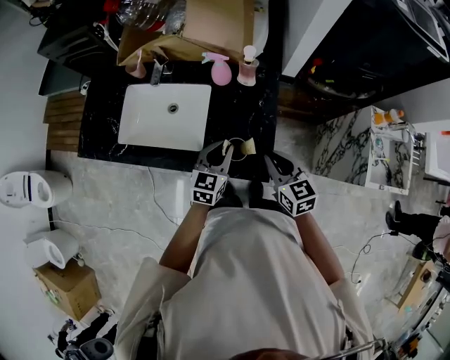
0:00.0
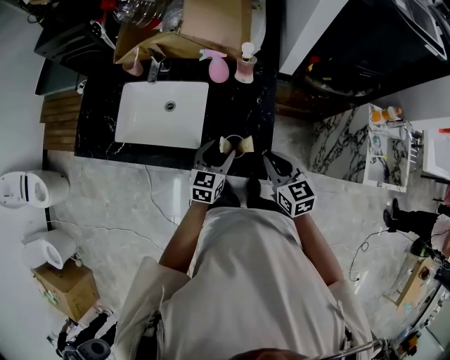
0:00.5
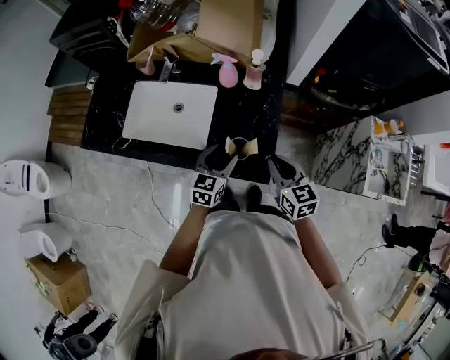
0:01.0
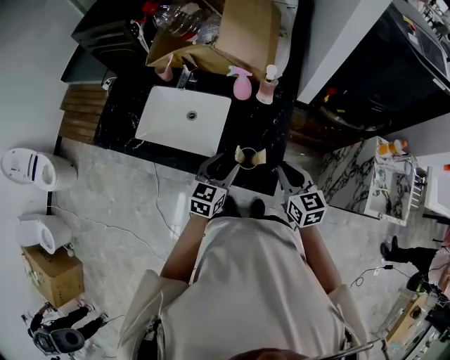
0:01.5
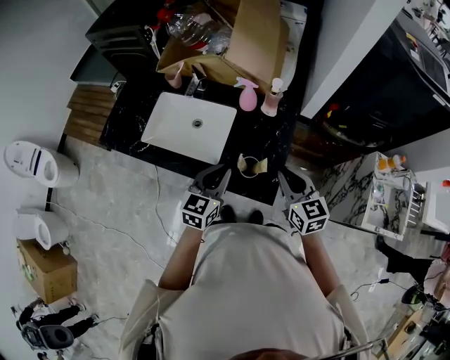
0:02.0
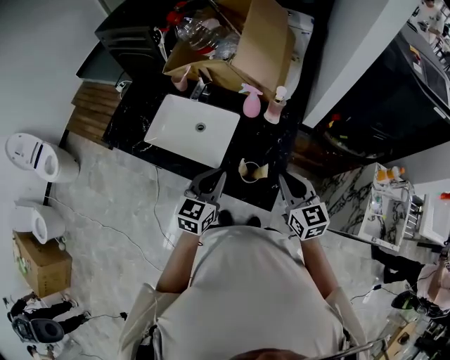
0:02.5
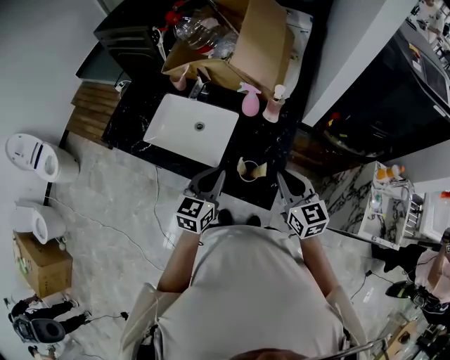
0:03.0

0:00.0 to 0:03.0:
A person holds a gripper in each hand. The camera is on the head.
0:00.0 to 0:01.5: The left gripper changes place by approximately 5 cm, and opens its fingers.
0:01.5 to 0:03.0: The grippers both shift upward by roughly 5 cm. The left gripper closes.

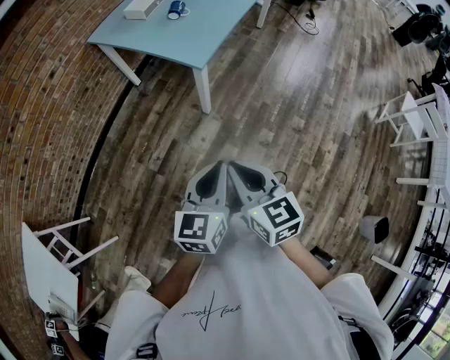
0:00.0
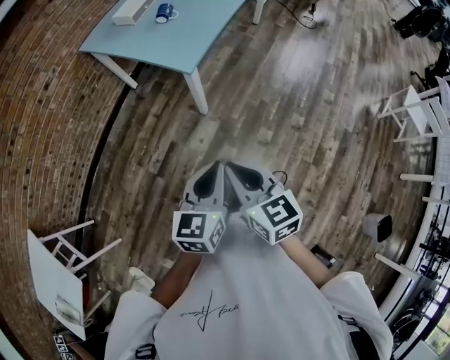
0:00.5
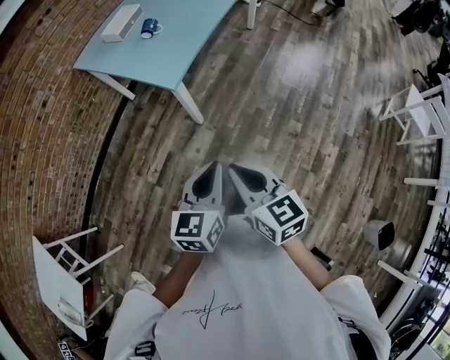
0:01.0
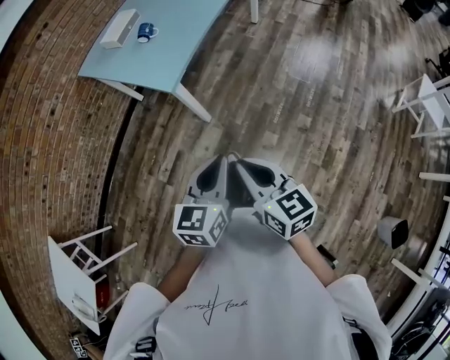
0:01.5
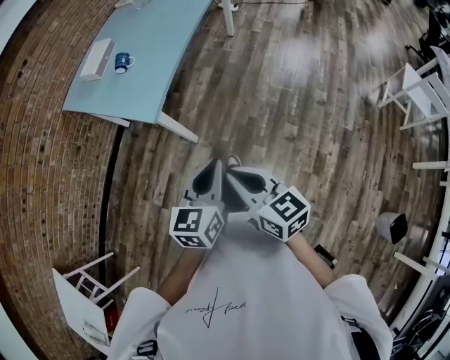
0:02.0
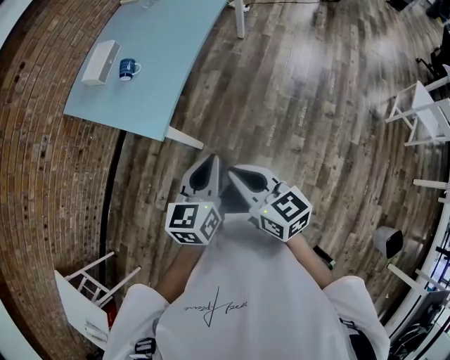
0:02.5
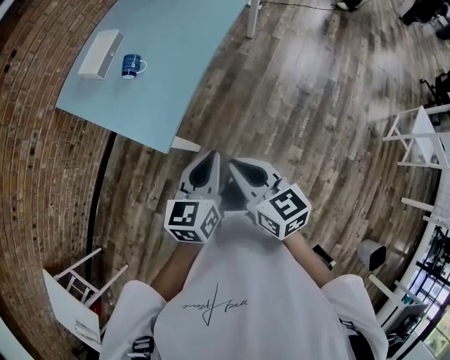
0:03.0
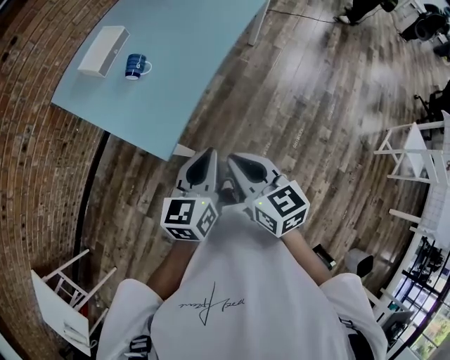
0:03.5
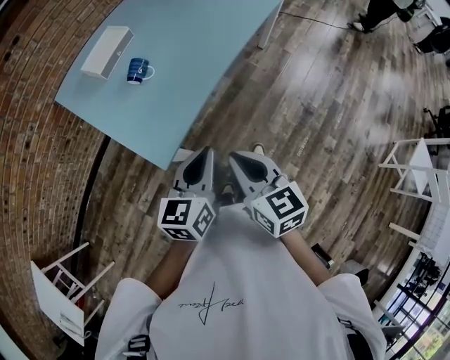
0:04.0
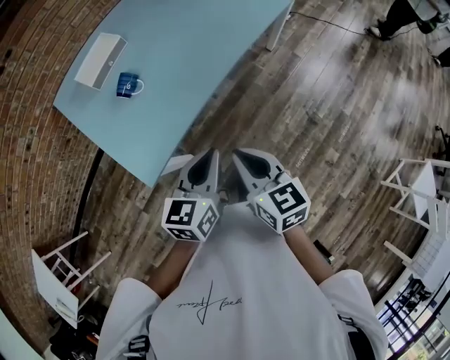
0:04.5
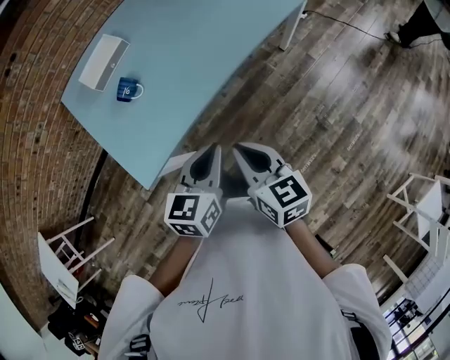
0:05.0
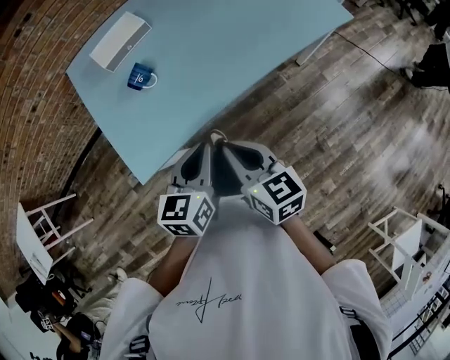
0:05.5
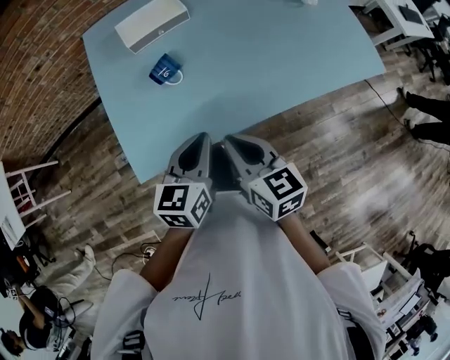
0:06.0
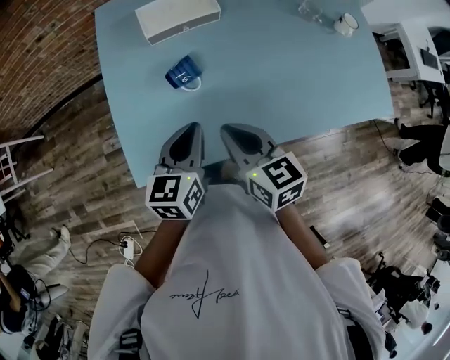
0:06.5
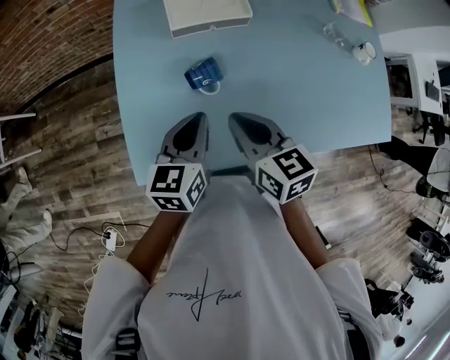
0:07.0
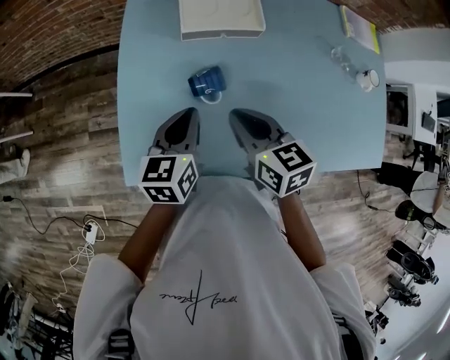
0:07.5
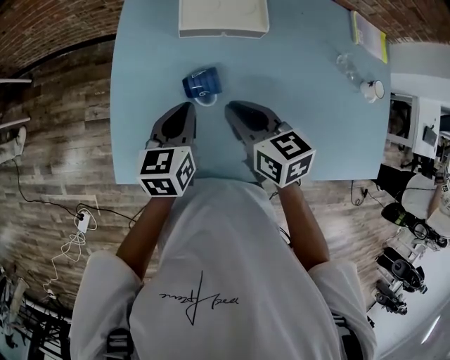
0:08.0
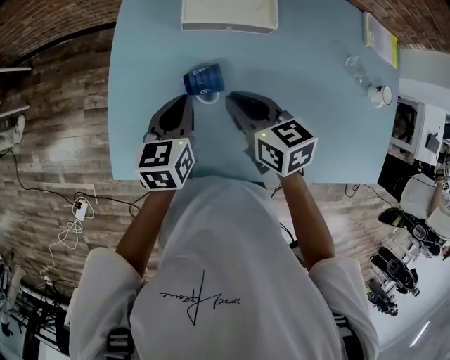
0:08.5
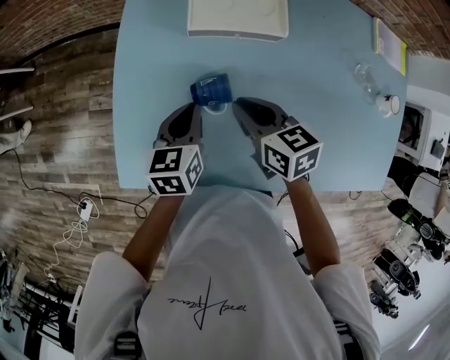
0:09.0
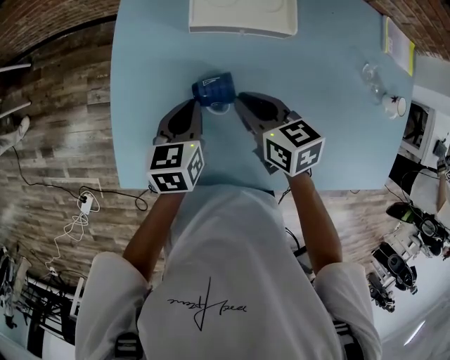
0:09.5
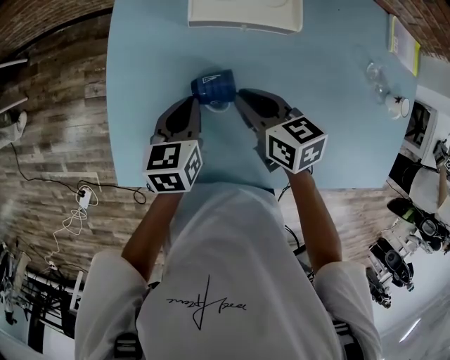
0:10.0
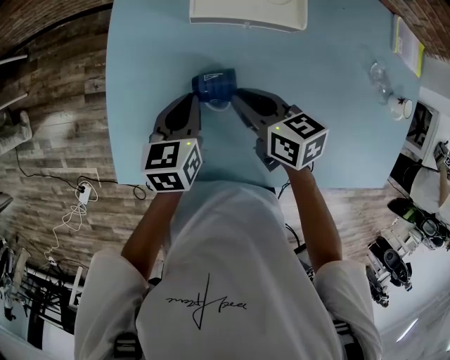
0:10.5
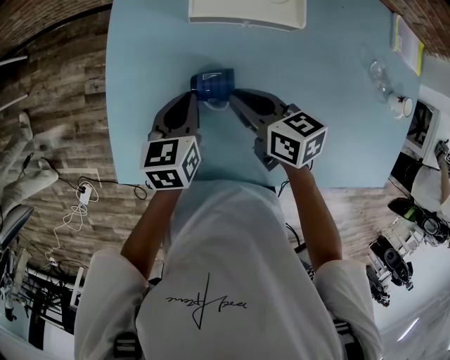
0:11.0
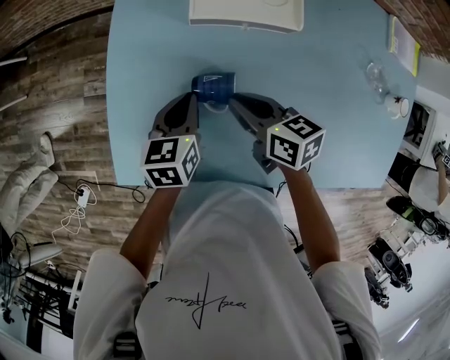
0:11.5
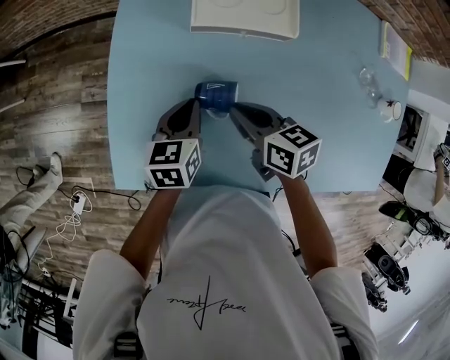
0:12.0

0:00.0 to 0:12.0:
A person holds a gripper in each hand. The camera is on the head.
0:00.0 to 0:02.0: The two grippers go roughly 25 cm to the right and forward.
0:02.0 to 0:04.0: The two grippers go approximately 30 cm forward.
0:04.0 to 0:06.0: The left gripper shifts by roughly 20 cm, and swivels some 30 degrees. Meanwhile the right gripper ends up about 25 cm from where it was, and changes its angle by some 30 degrees.
0:06.0 to 0:08.0: The left gripper moves roughly 20 cm, and changes its angle by approximately 30 degrees; the right gripper moves some 25 cm, and turns by approximately 30 degrees.
0:08.0 to 0:10.0: Both grippers move downward, approximately 10 cm.
0:10.0 to 0:12.0: The grippers make only small movements.

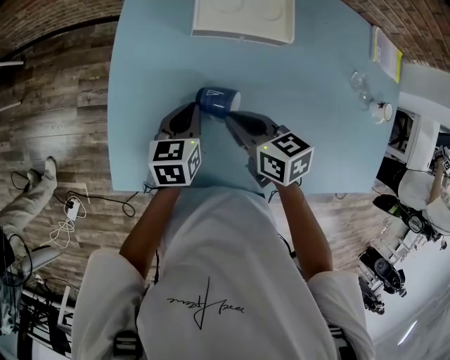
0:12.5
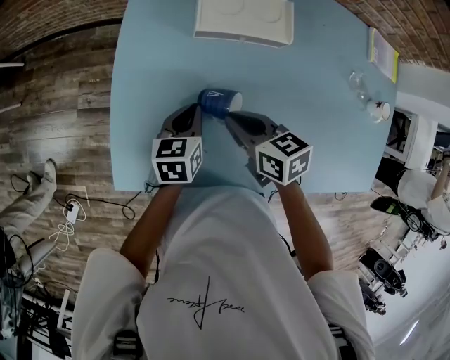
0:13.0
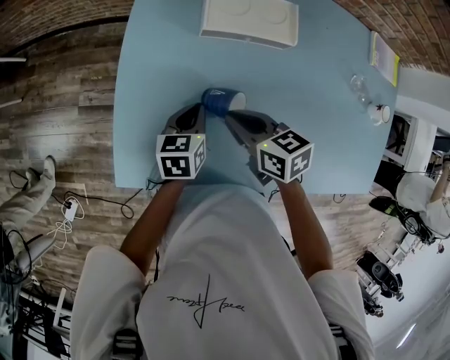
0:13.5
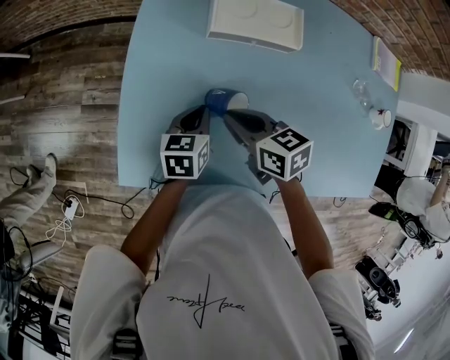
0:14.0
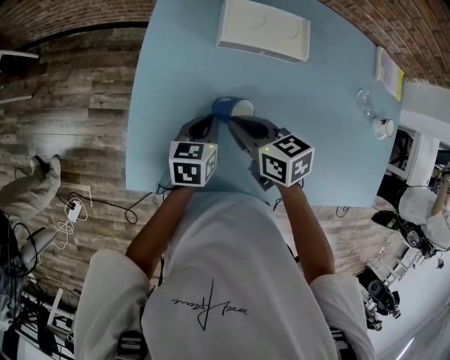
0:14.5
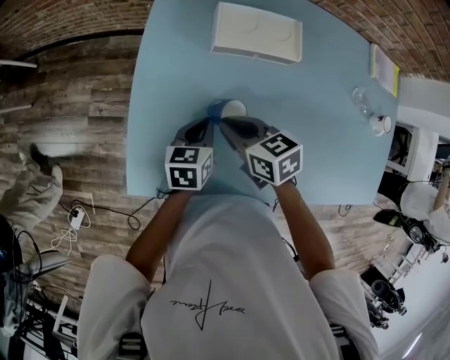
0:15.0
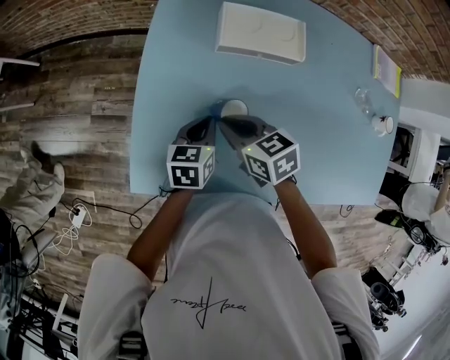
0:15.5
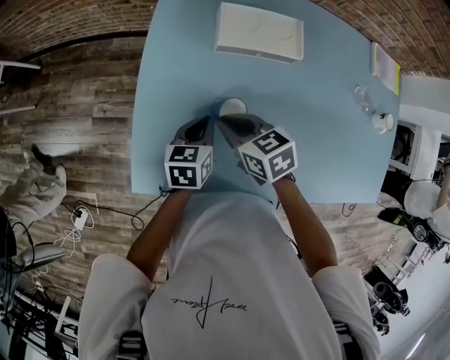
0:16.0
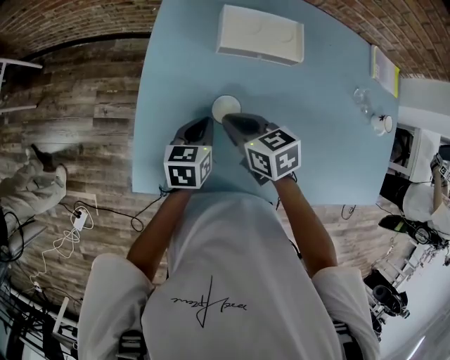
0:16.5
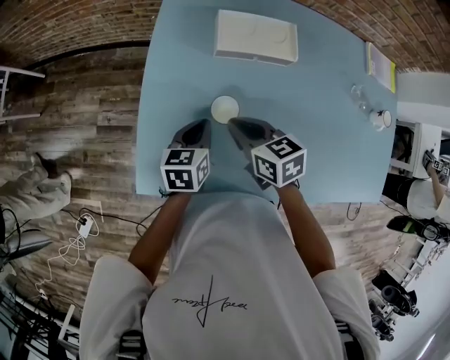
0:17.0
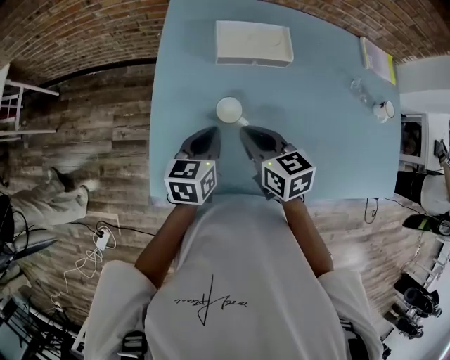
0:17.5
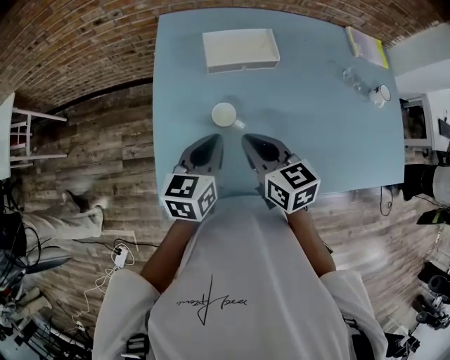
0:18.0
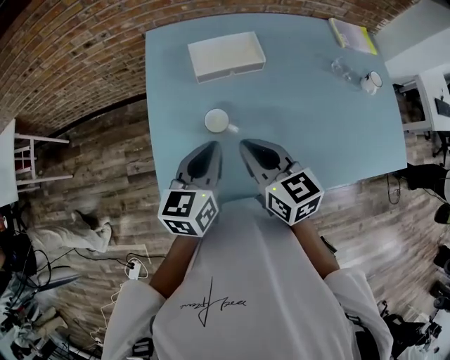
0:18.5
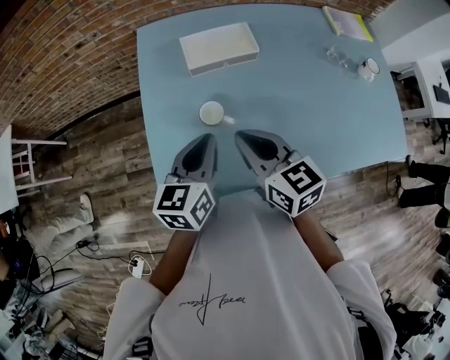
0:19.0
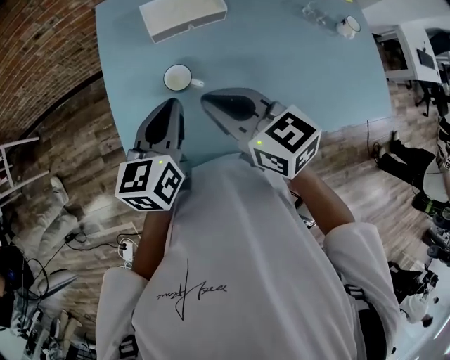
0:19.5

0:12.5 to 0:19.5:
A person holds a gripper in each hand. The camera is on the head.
0:12.5 to 0:14.5: The grippers make only small movements.
0:14.5 to 0:16.0: The grippers stay close to where they were, moving slightly.
0:16.0 to 0:17.5: Both grippers move upward, approximately 5 cm. The right gripper turns by some 20 degrees.
0:17.5 to 0:19.5: Both grippers move upward, roughly 10 cm.

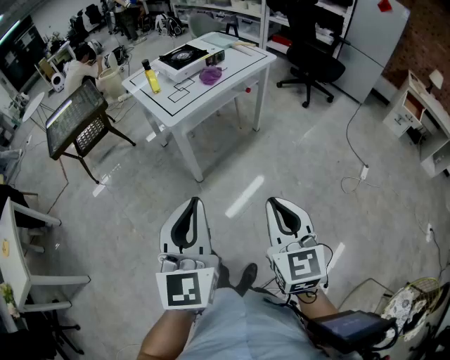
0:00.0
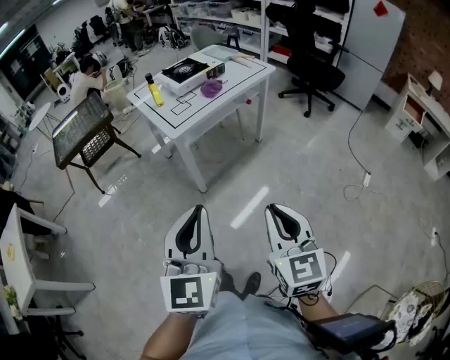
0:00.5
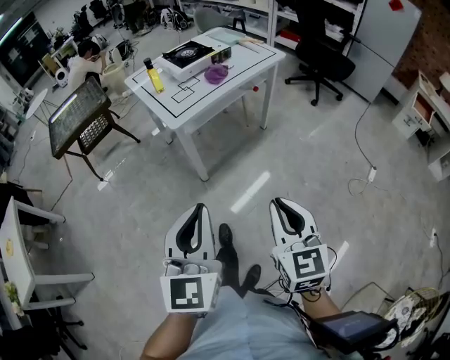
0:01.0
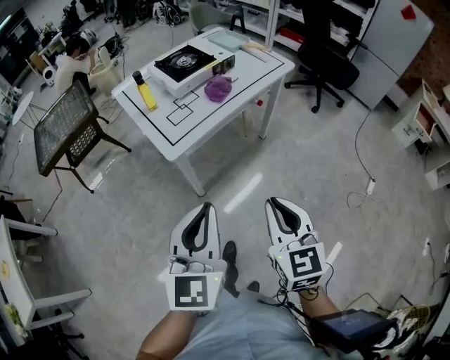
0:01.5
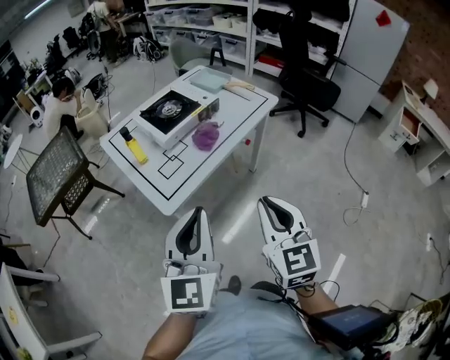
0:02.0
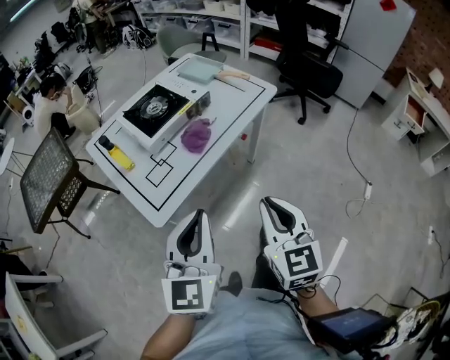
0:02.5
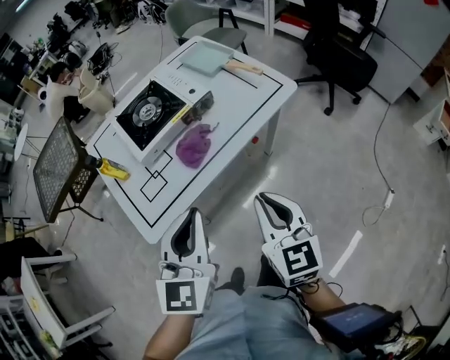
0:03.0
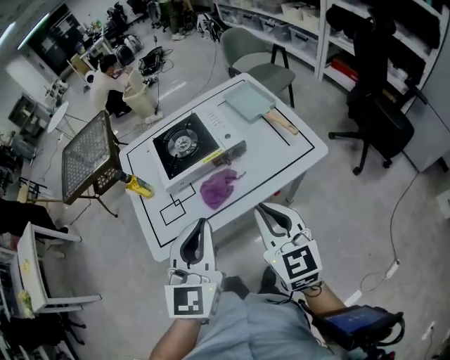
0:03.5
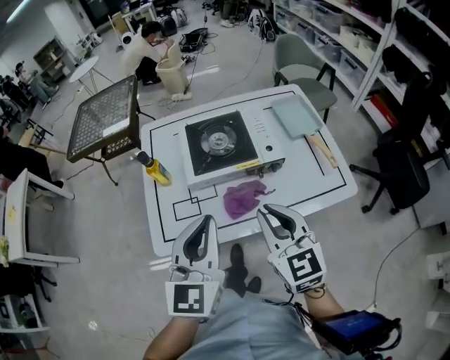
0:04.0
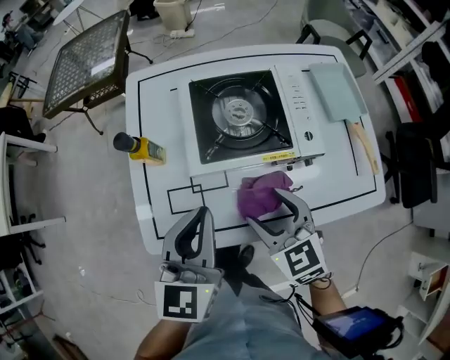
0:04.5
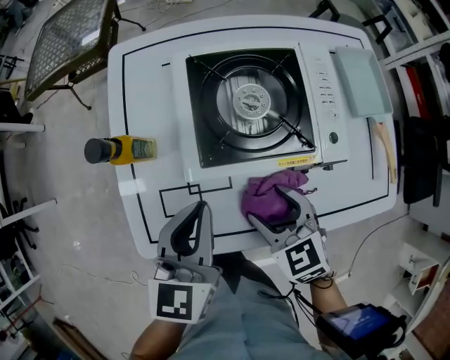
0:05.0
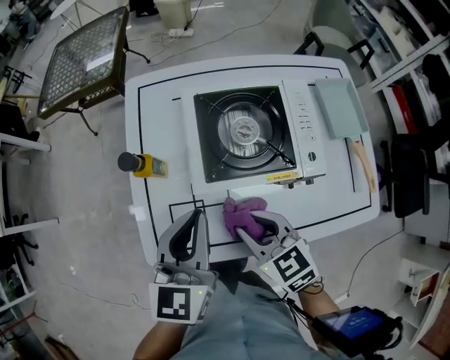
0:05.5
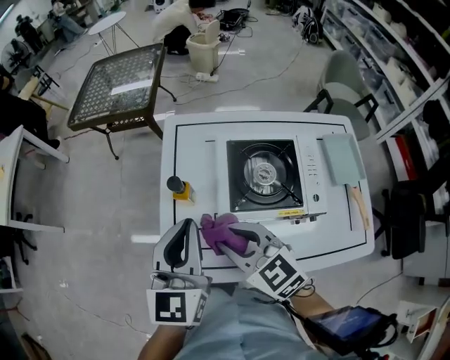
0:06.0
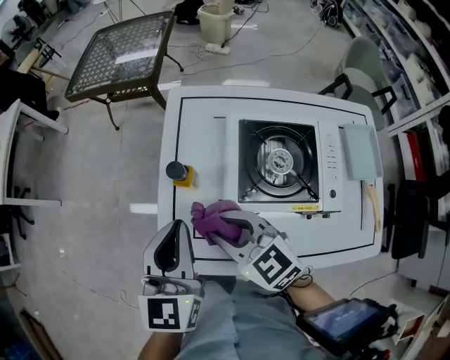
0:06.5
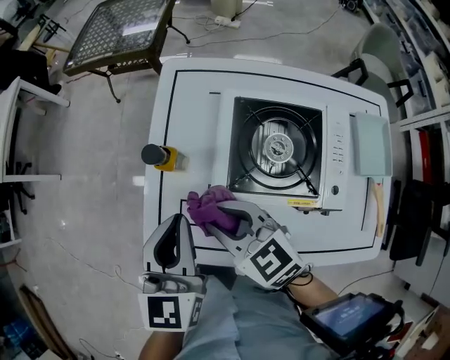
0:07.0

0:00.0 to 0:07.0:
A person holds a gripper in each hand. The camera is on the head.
0:00.0 to 0:02.0: Both grippers travel together forward, roughly 40 cm.
0:02.0 to 0:03.5: The right gripper moves about 35 cm, and changes its angle by roughly 30 degrees. The left gripper ends up approximately 35 cm from where it was, and swivels approximately 20 degrees.
0:03.5 to 0:05.0: The left gripper goes roughly 35 cm forward, downward and to the left, and rotates about 30 degrees, while the right gripper shifts roughly 35 cm downward, forward and to the left, points its fingers approximately 30 degrees further downward, and opens.
0:05.0 to 0:07.0: The right gripper changes place by some 20 cm, turns by some 30 degrees, and closes, while the left gripper goes about 10 cm upward, and rotates about 20 degrees.
